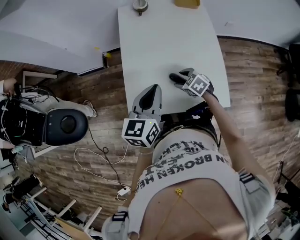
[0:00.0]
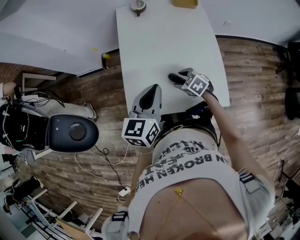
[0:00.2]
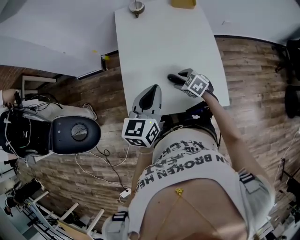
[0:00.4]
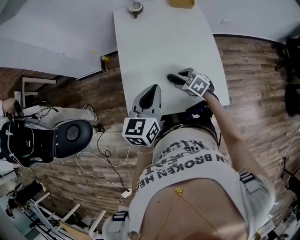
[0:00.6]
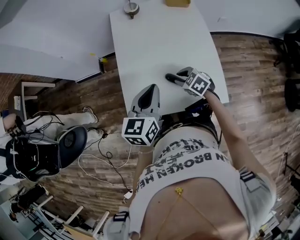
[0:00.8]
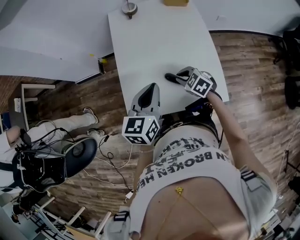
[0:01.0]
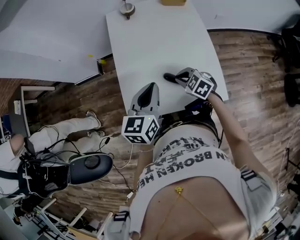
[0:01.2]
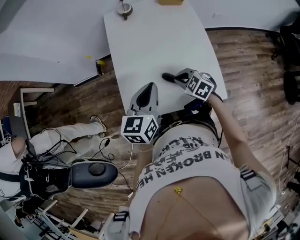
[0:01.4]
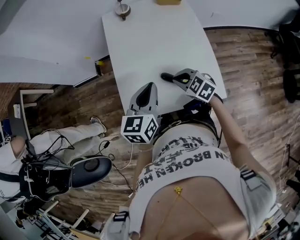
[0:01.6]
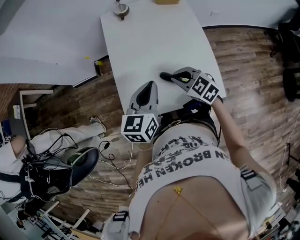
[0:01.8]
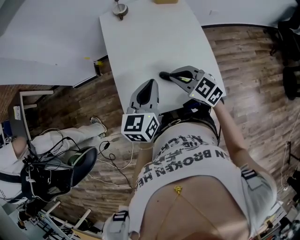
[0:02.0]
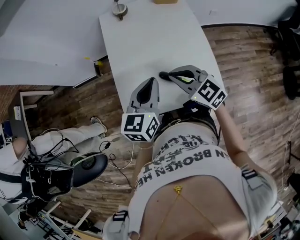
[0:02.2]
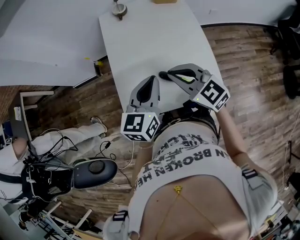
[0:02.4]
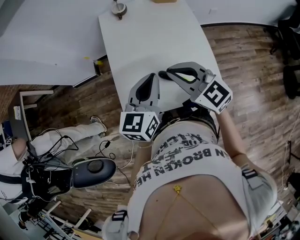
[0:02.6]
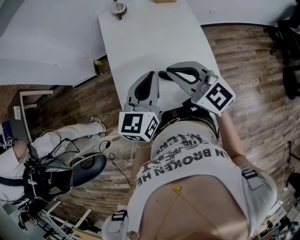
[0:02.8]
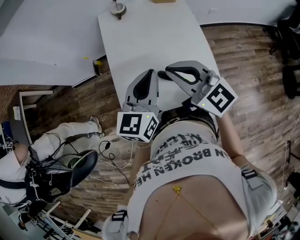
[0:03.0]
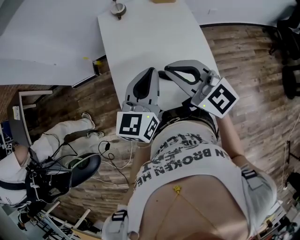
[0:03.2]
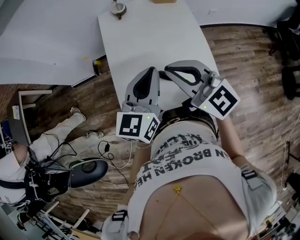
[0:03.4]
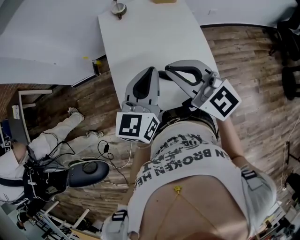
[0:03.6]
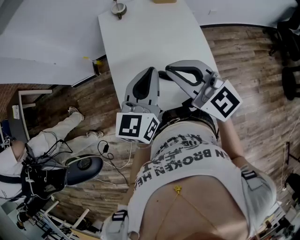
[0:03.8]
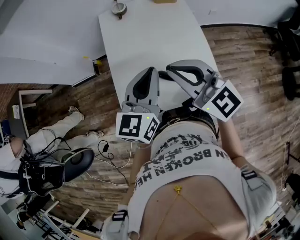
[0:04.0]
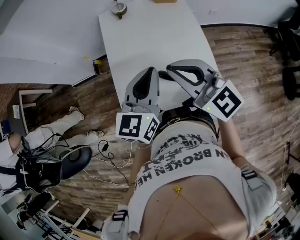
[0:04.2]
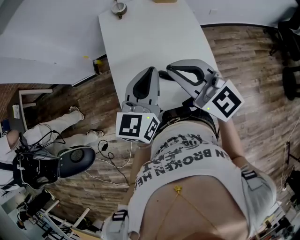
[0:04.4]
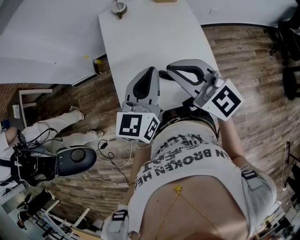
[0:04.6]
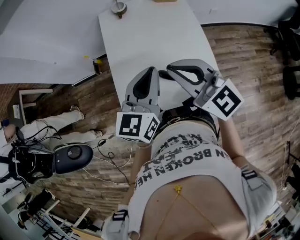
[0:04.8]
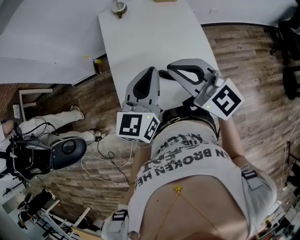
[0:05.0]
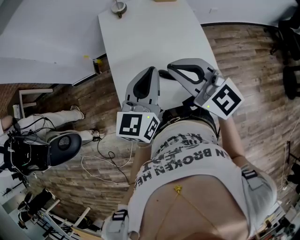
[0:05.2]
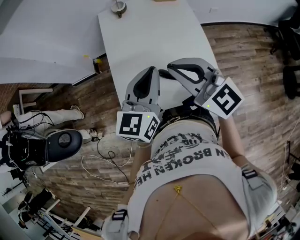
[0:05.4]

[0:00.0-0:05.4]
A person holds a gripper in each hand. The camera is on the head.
0.0 to 1.4 s: The right gripper shifts some 5 cm upward, and closes its fingers.
1.4 to 2.8 s: The right gripper goes about 25 cm upward, and points its fingers roughly 40 degrees further upward; the left gripper is displaced upward by roughly 5 cm.
2.8 to 4.0 s: The right gripper changes place by approximately 5 cm.
4.0 to 5.4 s: The grippers move only a little.

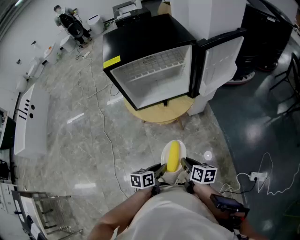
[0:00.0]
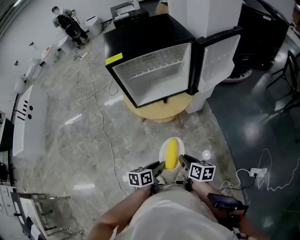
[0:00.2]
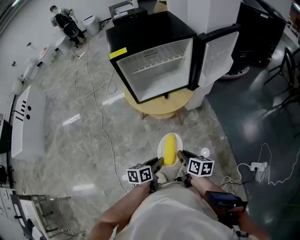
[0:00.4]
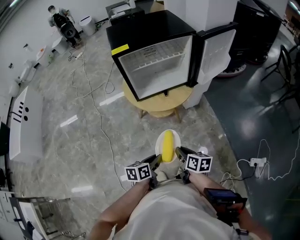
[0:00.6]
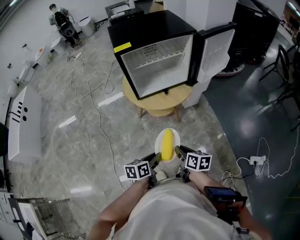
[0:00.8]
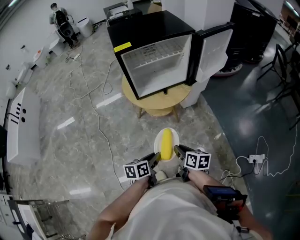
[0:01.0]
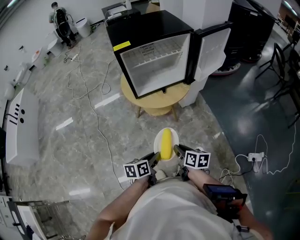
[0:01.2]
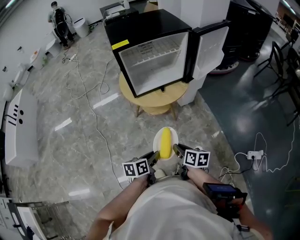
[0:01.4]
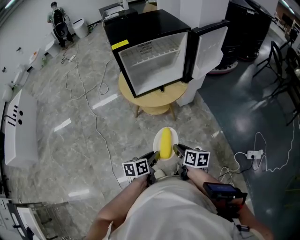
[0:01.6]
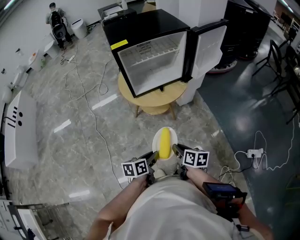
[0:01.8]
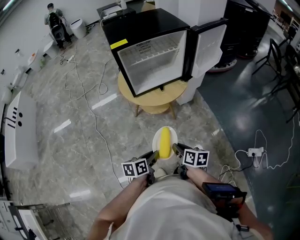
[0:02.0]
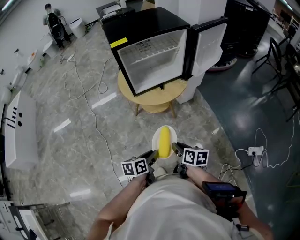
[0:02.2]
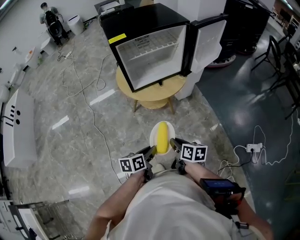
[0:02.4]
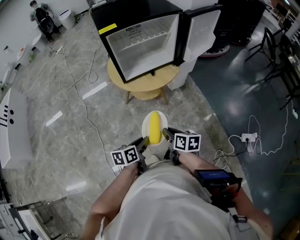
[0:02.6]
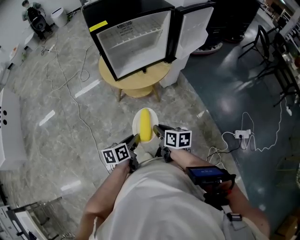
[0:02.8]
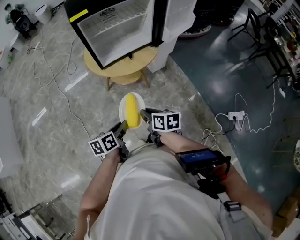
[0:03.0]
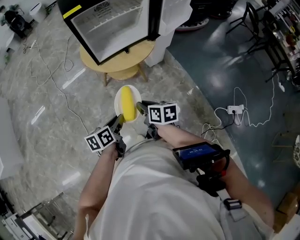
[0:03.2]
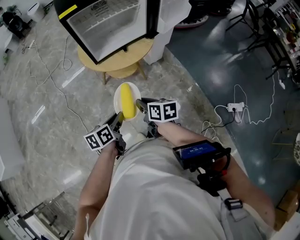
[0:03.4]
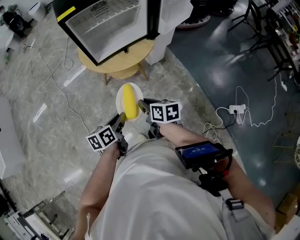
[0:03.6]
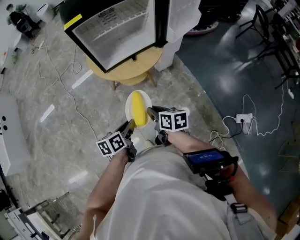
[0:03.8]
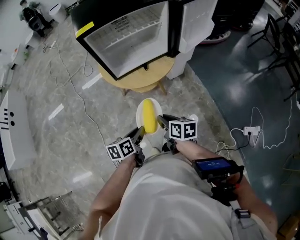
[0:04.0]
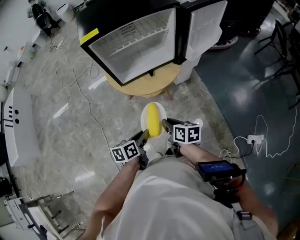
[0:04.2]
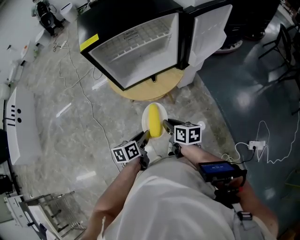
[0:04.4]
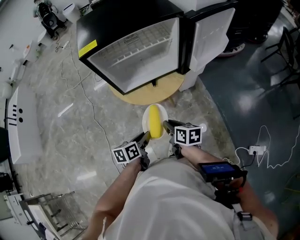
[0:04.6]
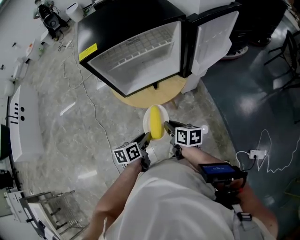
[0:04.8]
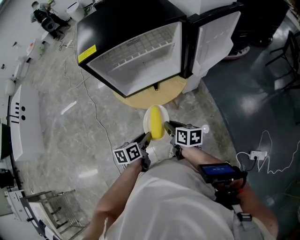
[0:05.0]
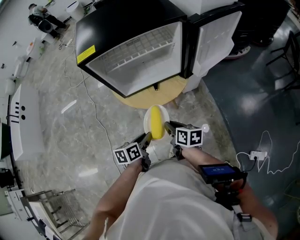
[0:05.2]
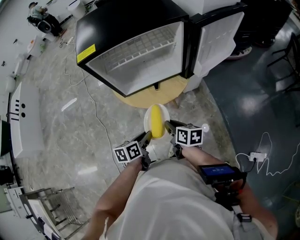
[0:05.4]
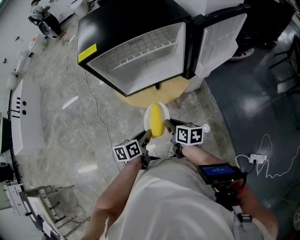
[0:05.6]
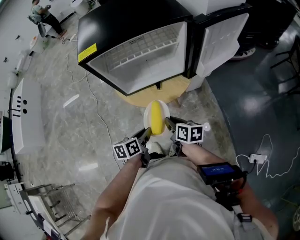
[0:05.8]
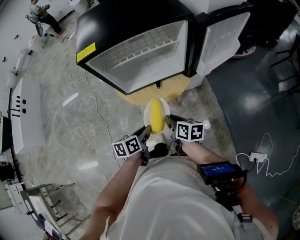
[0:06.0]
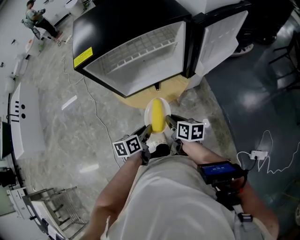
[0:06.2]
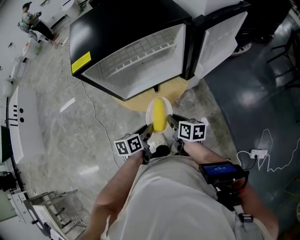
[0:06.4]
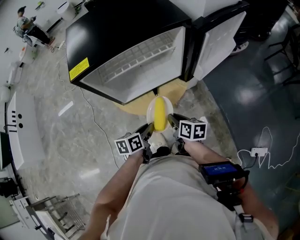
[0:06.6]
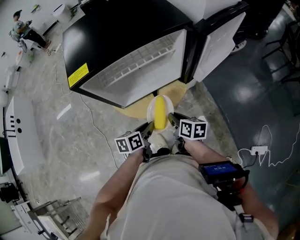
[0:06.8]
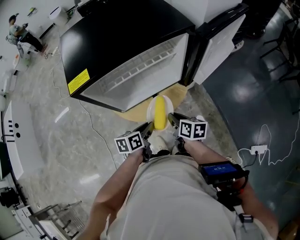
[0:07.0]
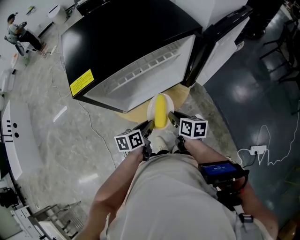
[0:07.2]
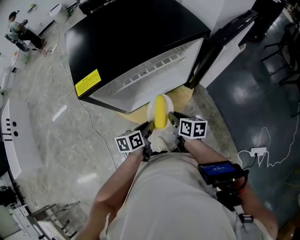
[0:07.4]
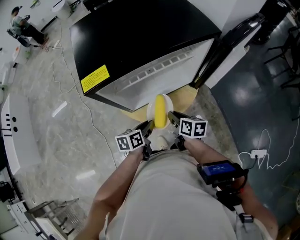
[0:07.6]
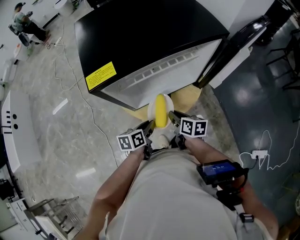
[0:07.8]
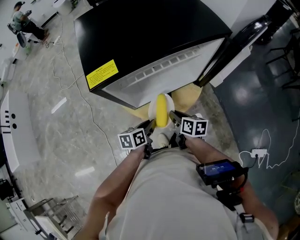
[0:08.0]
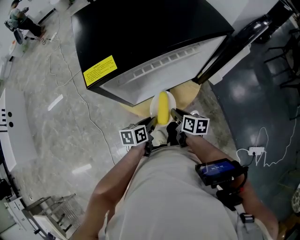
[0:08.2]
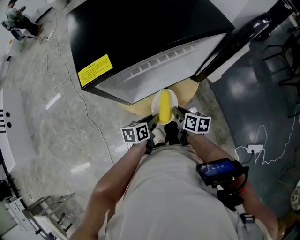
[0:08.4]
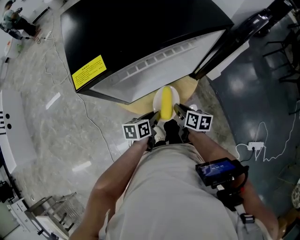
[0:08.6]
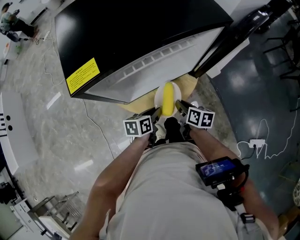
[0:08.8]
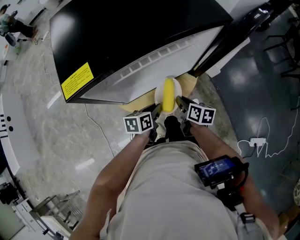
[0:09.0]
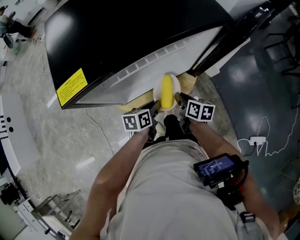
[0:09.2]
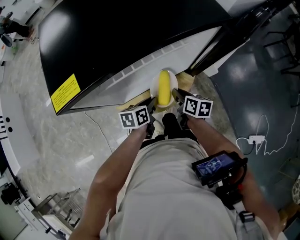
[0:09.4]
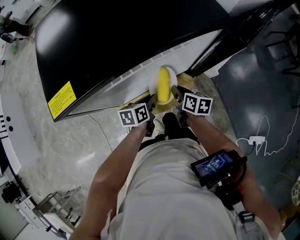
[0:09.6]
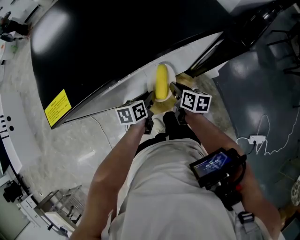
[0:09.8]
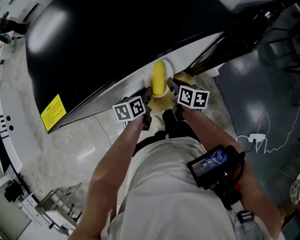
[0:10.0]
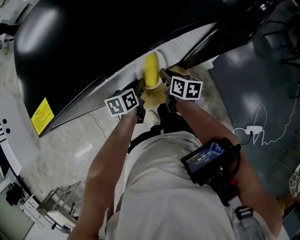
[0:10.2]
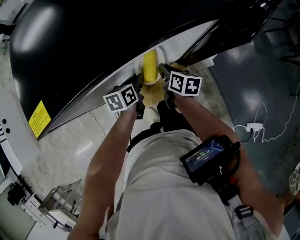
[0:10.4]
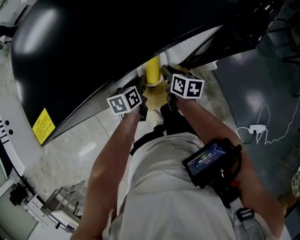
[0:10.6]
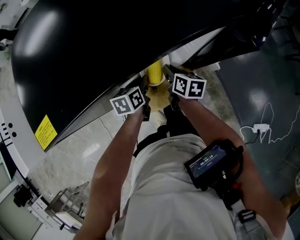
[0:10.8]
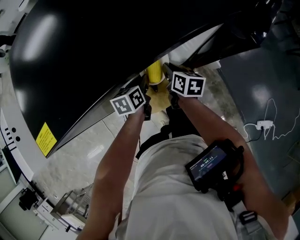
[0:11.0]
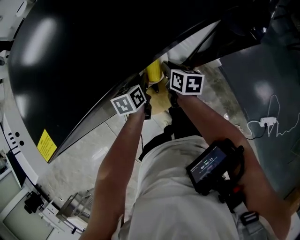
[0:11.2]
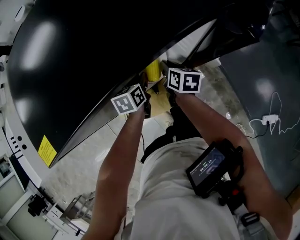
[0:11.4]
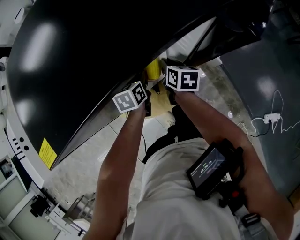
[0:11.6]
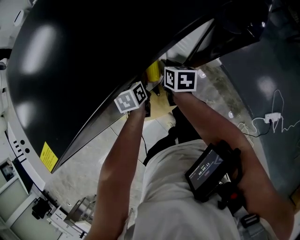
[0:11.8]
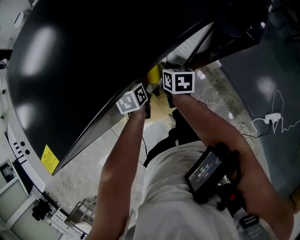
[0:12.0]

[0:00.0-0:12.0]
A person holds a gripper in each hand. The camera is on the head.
0.0 to 1.6 s: The two grippers go approximately 10 cm to the left and backward.
1.6 to 3.0 s: The right gripper shifts by roughly 5 cm.
3.0 to 4.4 s: Both grippers travel together forward and to the right, approximately 15 cm.
4.4 to 6.0 s: The two grippers go some 10 cm forward.
6.0 to 7.6 s: The grippers both shift forward by roughly 10 cm.
7.6 to 9.0 s: The grippers both shift to the right by approximately 5 cm.
9.0 to 10.4 s: Both grippers travel together forward, roughly 10 cm.
10.4 to 12.0 s: The right gripper changes place by about 5 cm, while the left gripper heads forward, covering some 5 cm.

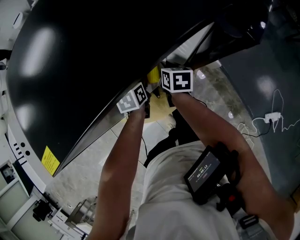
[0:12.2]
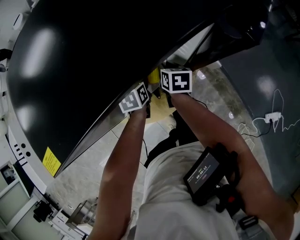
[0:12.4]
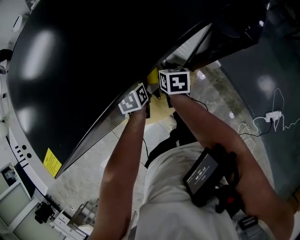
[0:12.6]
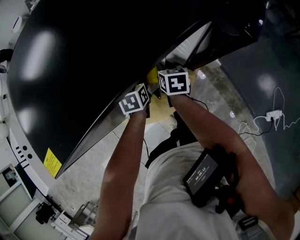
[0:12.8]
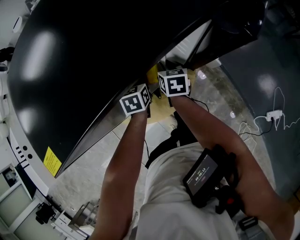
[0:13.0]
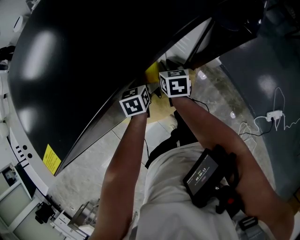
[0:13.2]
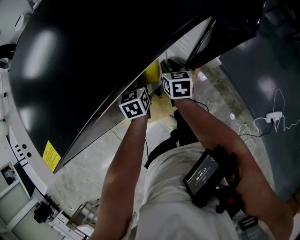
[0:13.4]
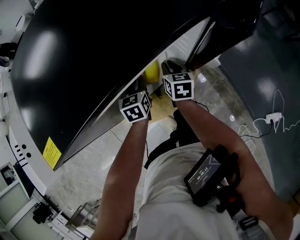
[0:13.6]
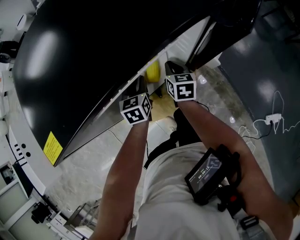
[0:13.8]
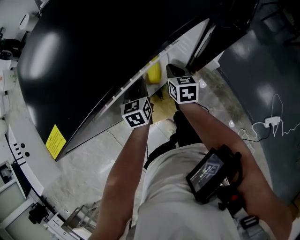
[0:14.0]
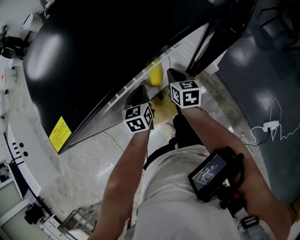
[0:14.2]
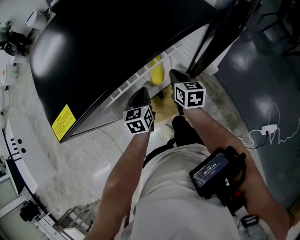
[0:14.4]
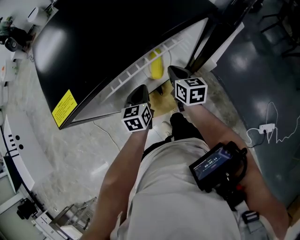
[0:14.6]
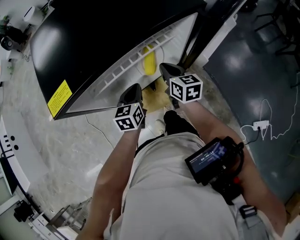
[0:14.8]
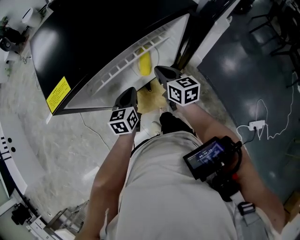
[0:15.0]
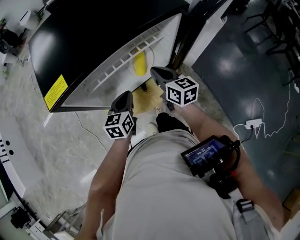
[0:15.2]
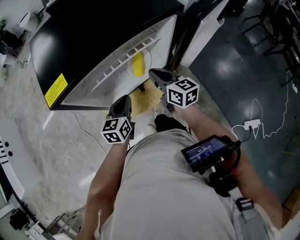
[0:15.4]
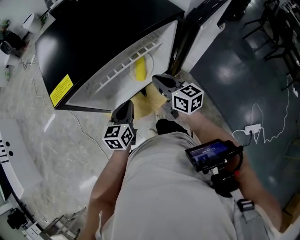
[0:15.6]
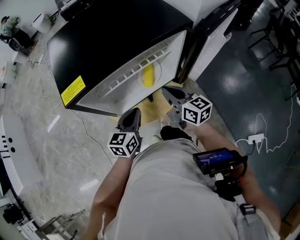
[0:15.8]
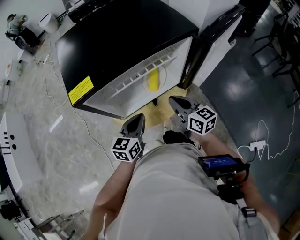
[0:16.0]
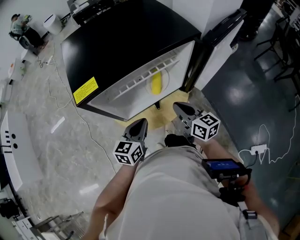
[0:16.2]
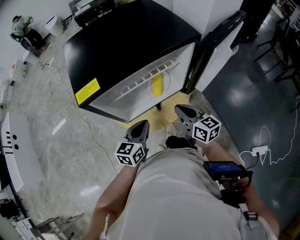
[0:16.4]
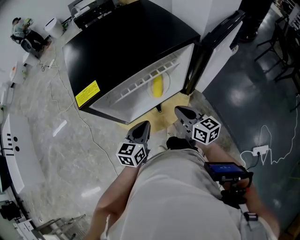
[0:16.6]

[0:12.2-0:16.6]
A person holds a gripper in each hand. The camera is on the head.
12.2 to 13.6 s: The grippers make only small movements.
13.6 to 15.2 s: The left gripper is displaced backward and upward by some 15 cm, and closes its fingers, while the right gripper goes roughly 15 cm upward and backward, and changes its angle by about 30 degrees.
15.2 to 16.6 s: The two grippers go some 10 cm backward.

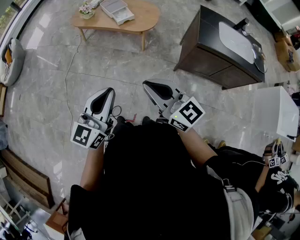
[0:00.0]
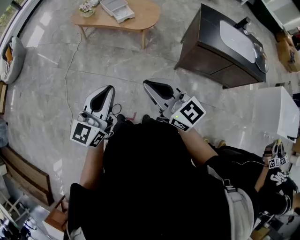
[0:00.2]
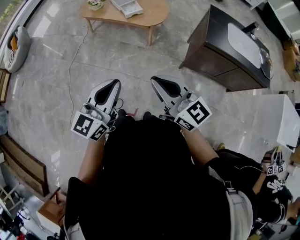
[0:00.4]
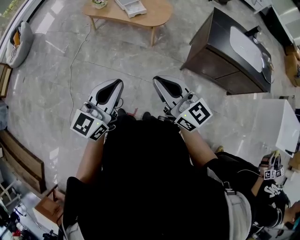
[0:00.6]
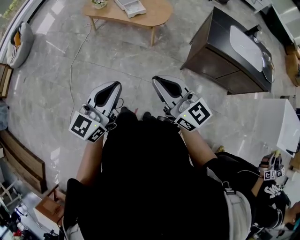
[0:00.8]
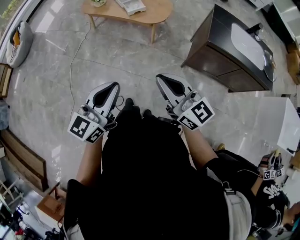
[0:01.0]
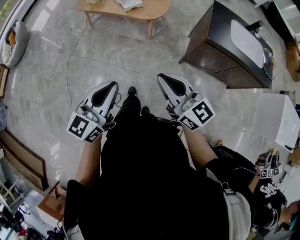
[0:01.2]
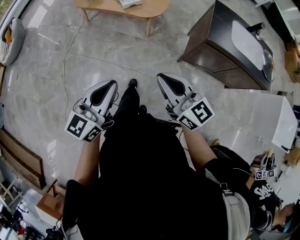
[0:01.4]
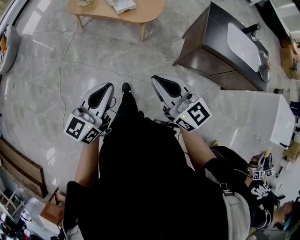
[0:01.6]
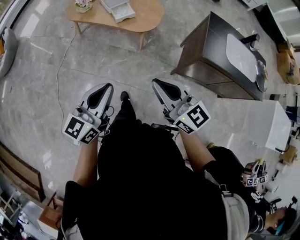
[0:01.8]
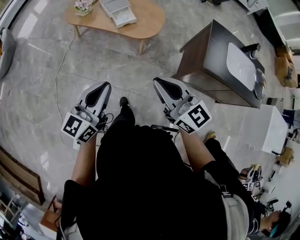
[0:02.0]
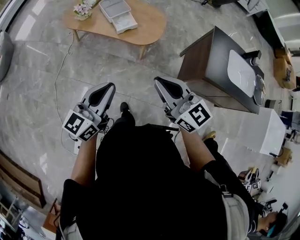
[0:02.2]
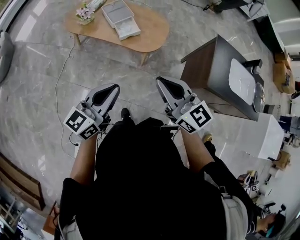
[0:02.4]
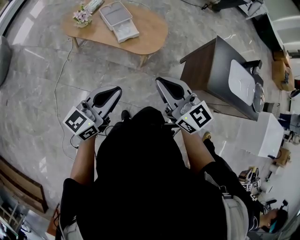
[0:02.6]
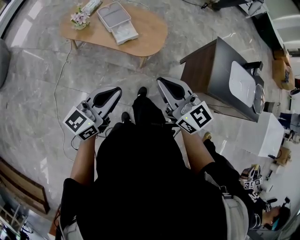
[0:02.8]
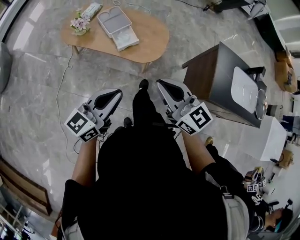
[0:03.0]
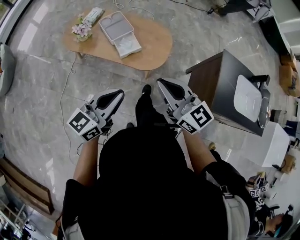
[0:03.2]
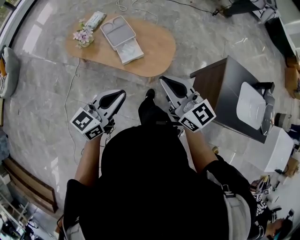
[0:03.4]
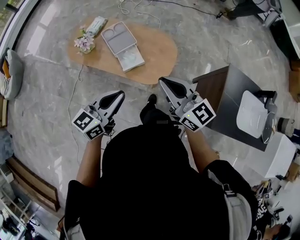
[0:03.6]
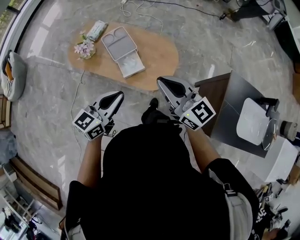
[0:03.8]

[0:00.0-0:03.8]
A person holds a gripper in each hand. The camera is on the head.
0.0 to 1.2 s: The right gripper is displaced to the right by approximately 5 cm.
1.2 to 2.6 s: Both grippers move forward, roughly 35 cm.
2.6 to 3.8 s: The two grippers go approximately 30 cm forward.
